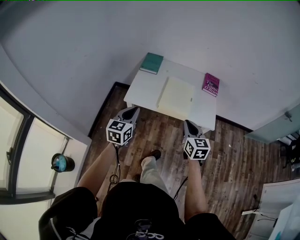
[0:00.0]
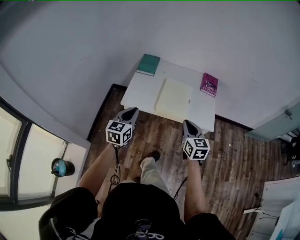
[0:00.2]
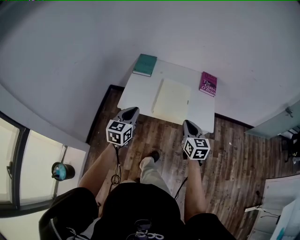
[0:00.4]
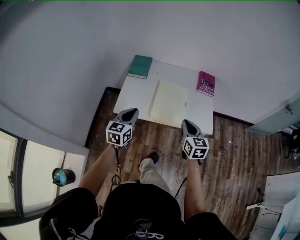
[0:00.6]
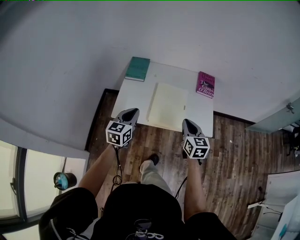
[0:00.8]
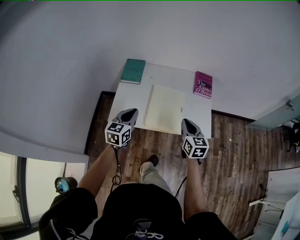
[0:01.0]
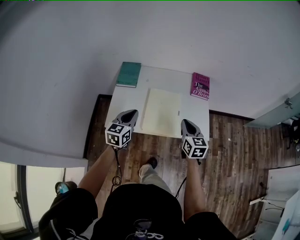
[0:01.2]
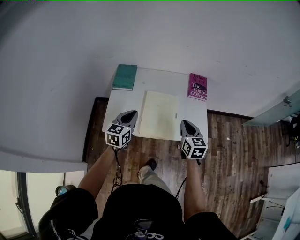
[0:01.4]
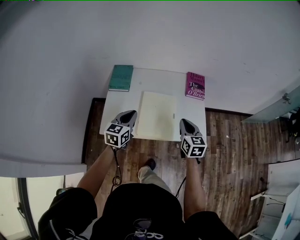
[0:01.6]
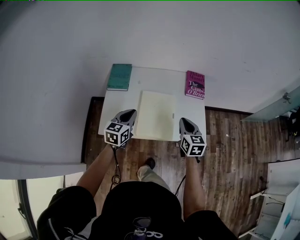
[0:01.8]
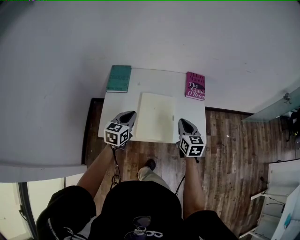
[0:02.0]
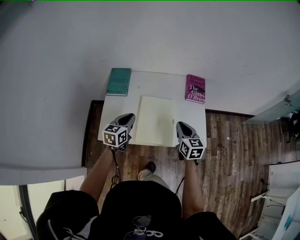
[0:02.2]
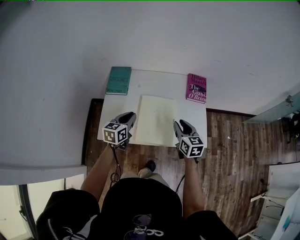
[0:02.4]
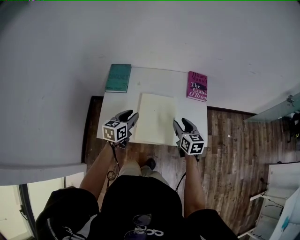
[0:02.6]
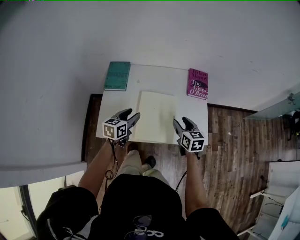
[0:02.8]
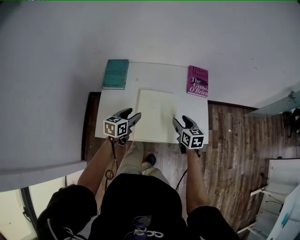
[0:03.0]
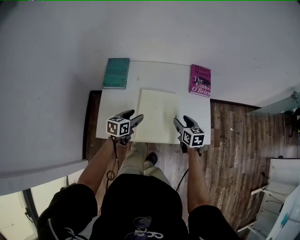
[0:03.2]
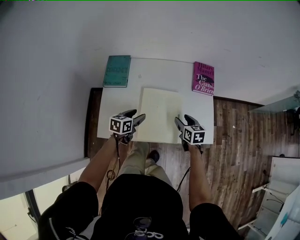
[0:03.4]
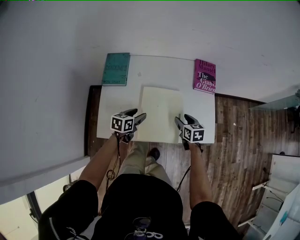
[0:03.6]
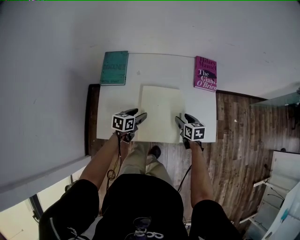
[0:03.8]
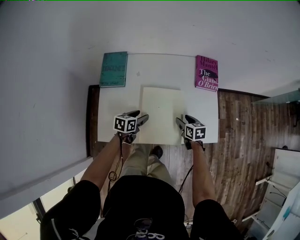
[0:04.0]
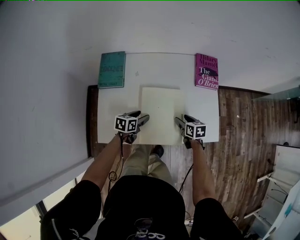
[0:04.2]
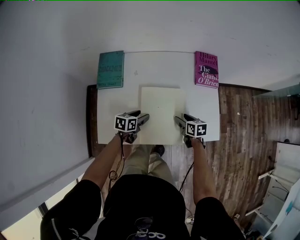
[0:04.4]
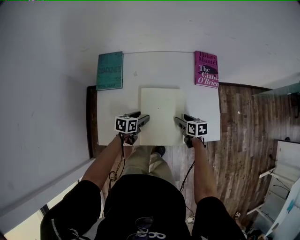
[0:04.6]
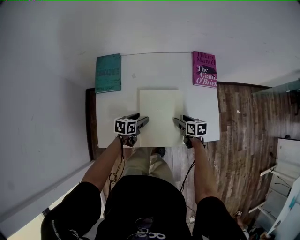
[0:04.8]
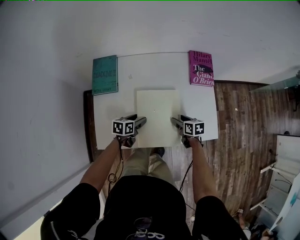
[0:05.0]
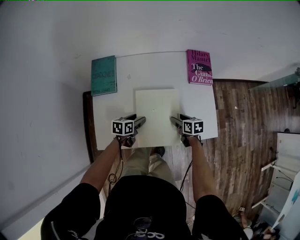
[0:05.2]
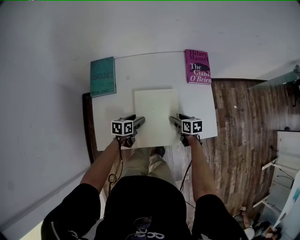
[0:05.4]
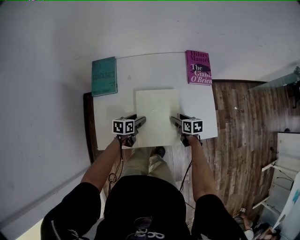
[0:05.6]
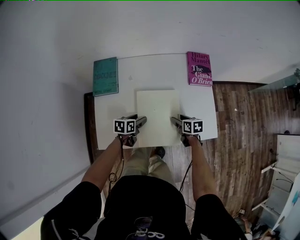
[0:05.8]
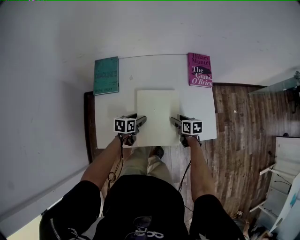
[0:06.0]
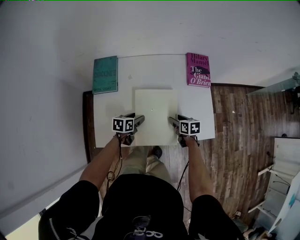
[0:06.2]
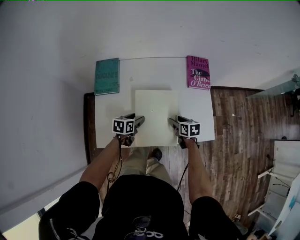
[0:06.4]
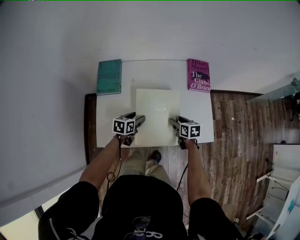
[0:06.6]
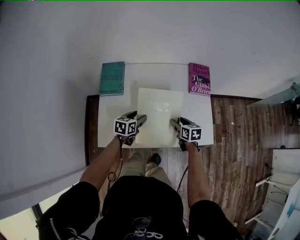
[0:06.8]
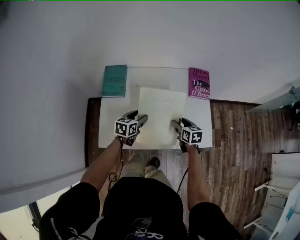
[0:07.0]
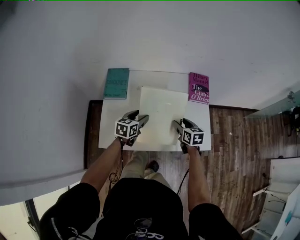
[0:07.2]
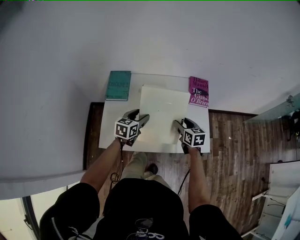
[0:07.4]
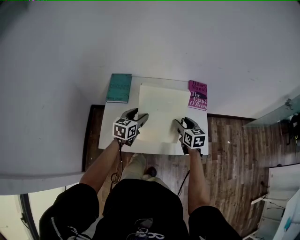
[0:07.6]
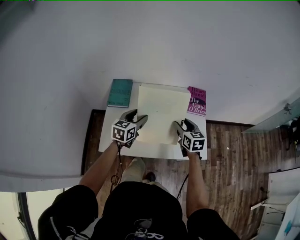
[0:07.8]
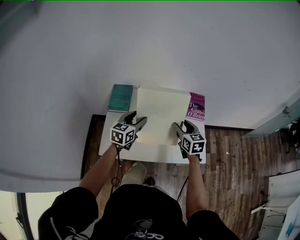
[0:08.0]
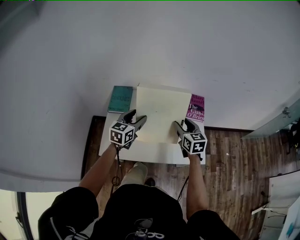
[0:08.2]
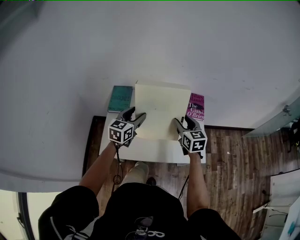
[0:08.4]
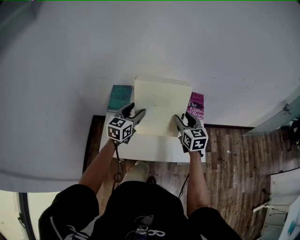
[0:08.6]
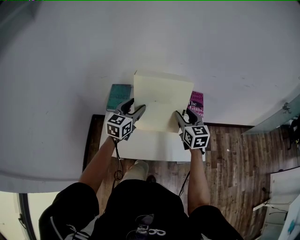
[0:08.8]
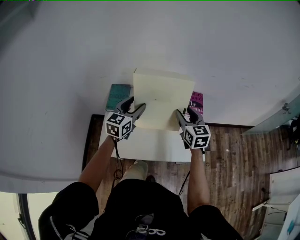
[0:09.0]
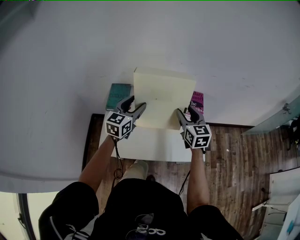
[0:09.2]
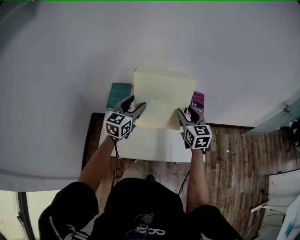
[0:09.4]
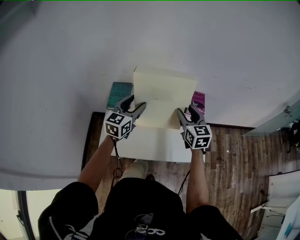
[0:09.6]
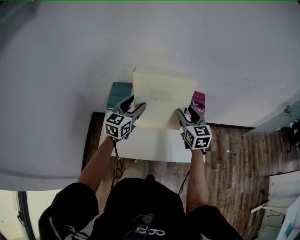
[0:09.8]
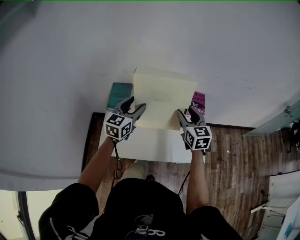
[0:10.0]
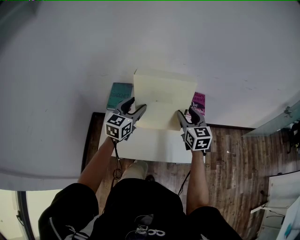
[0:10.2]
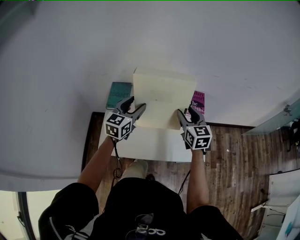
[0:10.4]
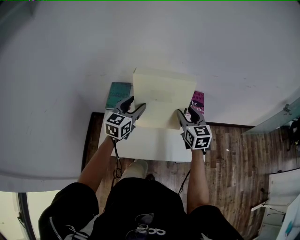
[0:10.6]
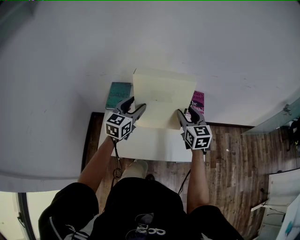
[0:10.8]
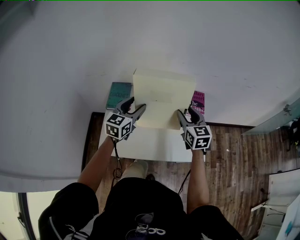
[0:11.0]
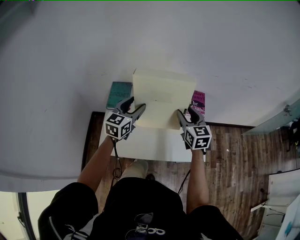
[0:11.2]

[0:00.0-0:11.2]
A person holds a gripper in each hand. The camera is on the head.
0:00.0 to 0:01.6: Both grippers move forward, about 25 cm.
0:01.6 to 0:03.2: The grippers both shift downward and forward by about 15 cm. The right gripper opens up; the left gripper turns by approximately 20 degrees, and opens its fingers.
0:03.2 to 0:04.8: Both grippers travel together downward, approximately 15 cm. The right gripper changes its angle by some 20 degrees.
0:04.8 to 0:06.4: The grippers move only a little.
0:06.4 to 0:08.0: The two grippers go approximately 25 cm upward. The left gripper changes its angle by about 40 degrees, while the right gripper rotates about 30 degrees.
0:08.0 to 0:09.6: Both grippers travel together upward, roughly 10 cm.
0:09.6 to 0:11.2: Both grippers stay about where they are.

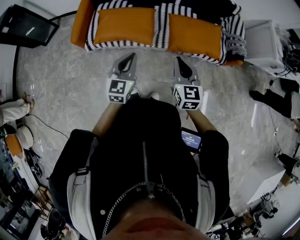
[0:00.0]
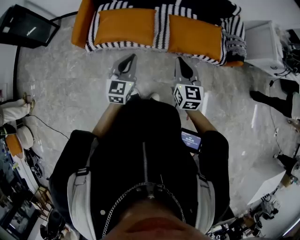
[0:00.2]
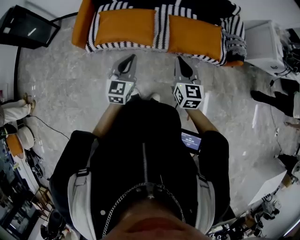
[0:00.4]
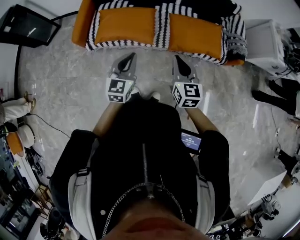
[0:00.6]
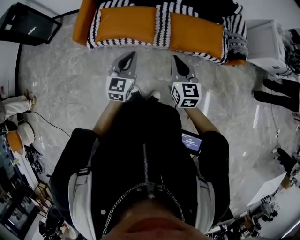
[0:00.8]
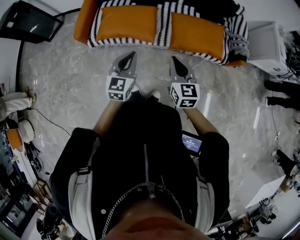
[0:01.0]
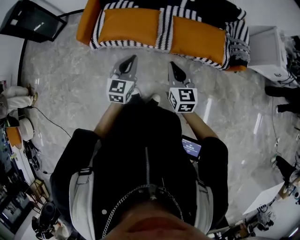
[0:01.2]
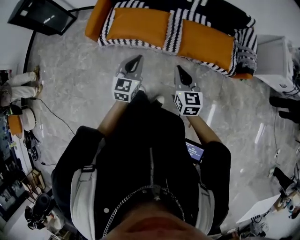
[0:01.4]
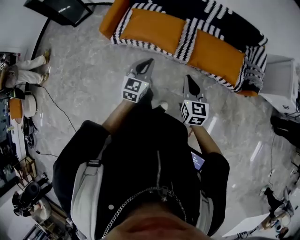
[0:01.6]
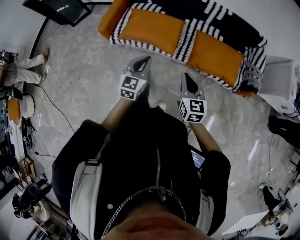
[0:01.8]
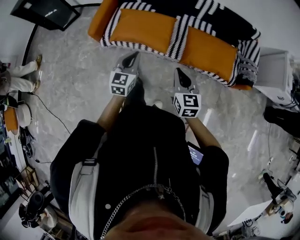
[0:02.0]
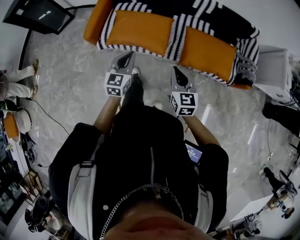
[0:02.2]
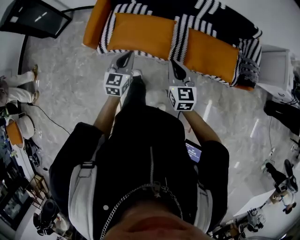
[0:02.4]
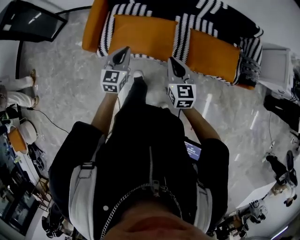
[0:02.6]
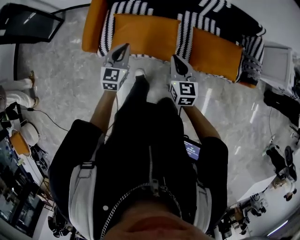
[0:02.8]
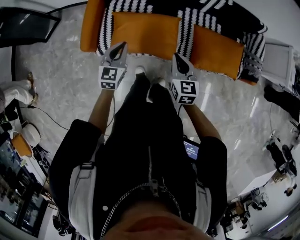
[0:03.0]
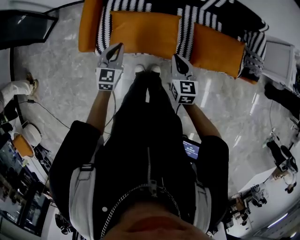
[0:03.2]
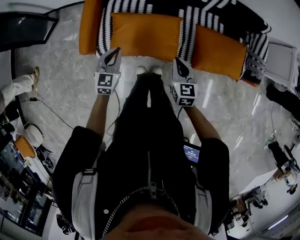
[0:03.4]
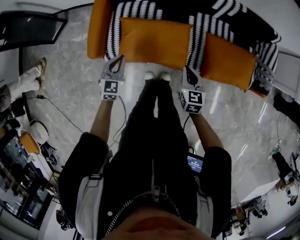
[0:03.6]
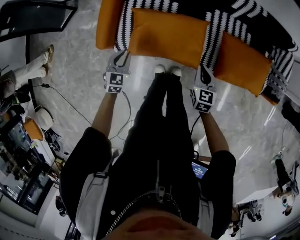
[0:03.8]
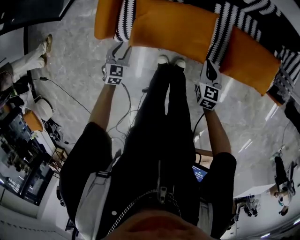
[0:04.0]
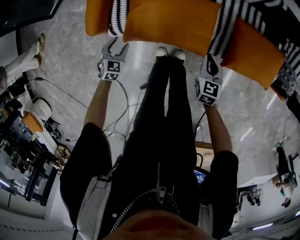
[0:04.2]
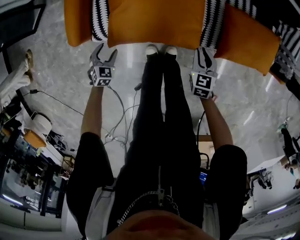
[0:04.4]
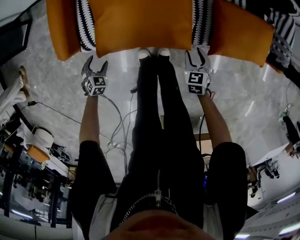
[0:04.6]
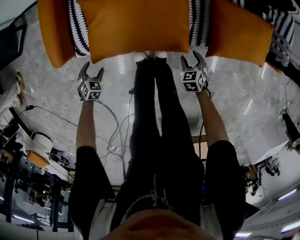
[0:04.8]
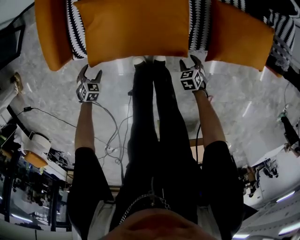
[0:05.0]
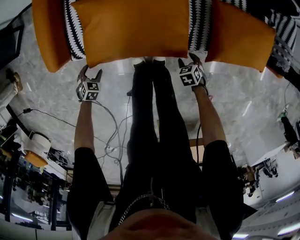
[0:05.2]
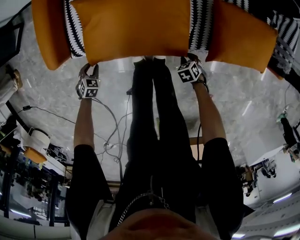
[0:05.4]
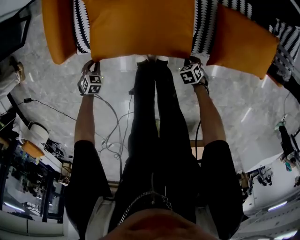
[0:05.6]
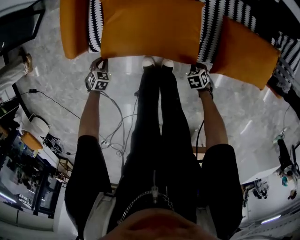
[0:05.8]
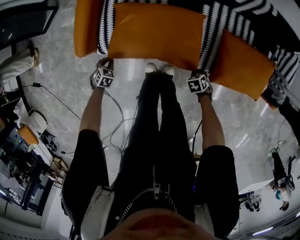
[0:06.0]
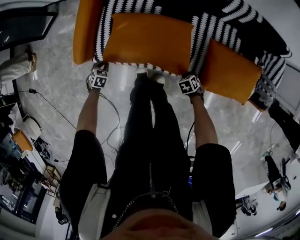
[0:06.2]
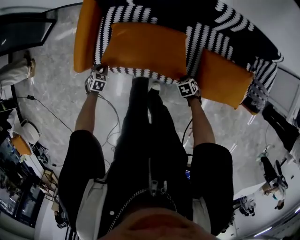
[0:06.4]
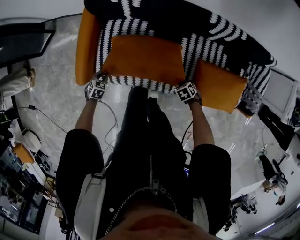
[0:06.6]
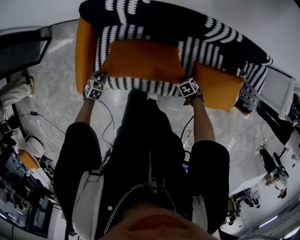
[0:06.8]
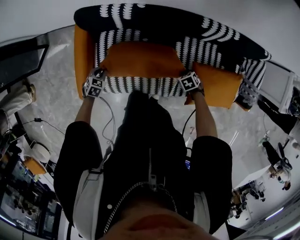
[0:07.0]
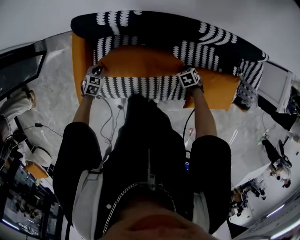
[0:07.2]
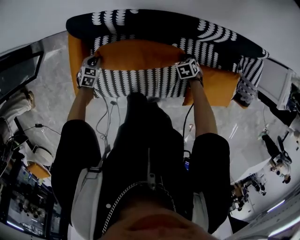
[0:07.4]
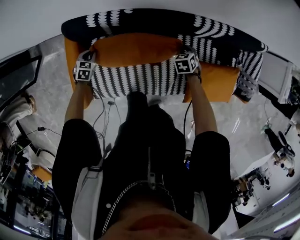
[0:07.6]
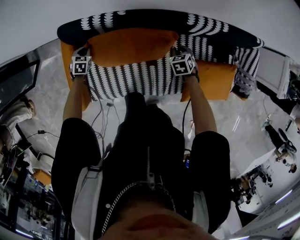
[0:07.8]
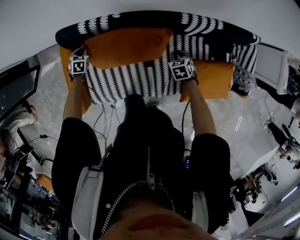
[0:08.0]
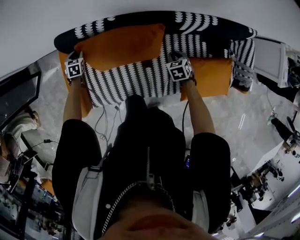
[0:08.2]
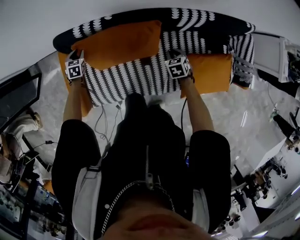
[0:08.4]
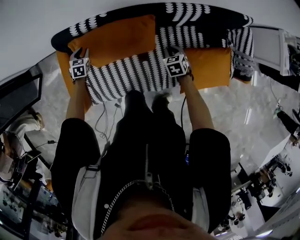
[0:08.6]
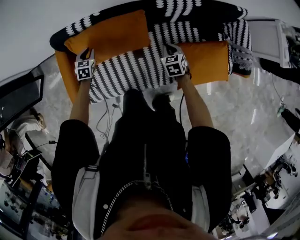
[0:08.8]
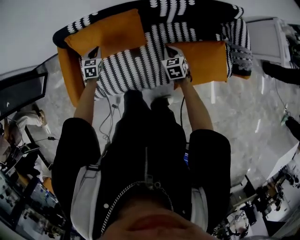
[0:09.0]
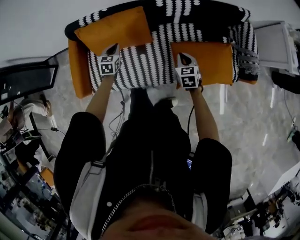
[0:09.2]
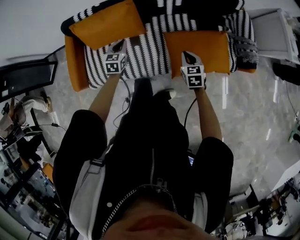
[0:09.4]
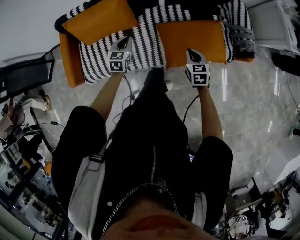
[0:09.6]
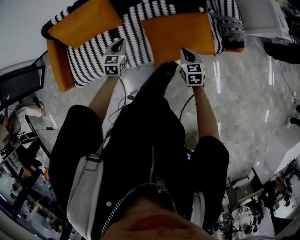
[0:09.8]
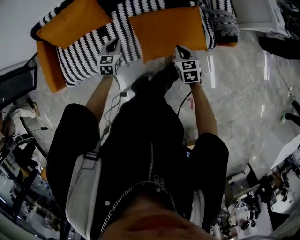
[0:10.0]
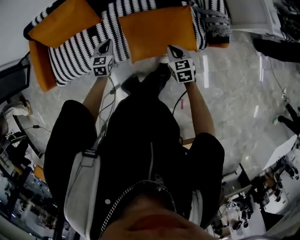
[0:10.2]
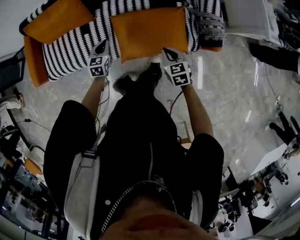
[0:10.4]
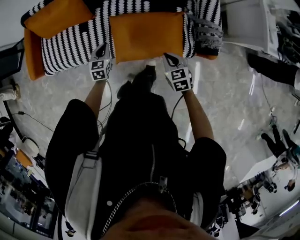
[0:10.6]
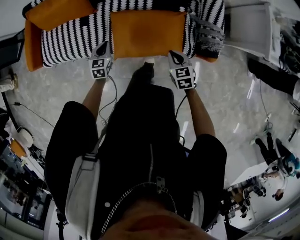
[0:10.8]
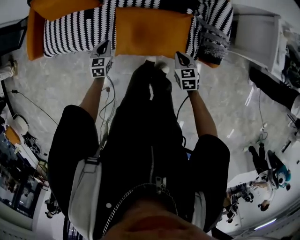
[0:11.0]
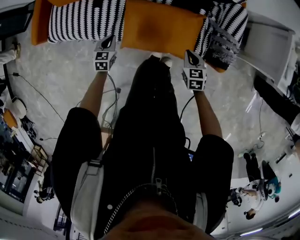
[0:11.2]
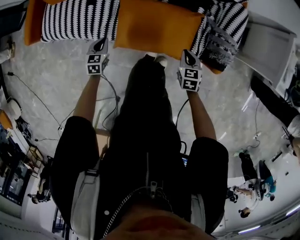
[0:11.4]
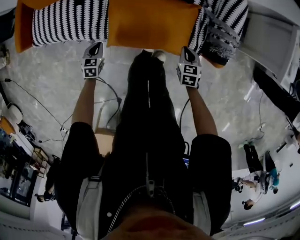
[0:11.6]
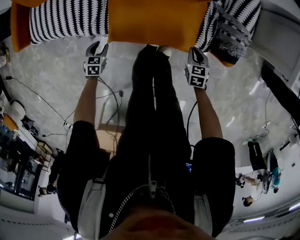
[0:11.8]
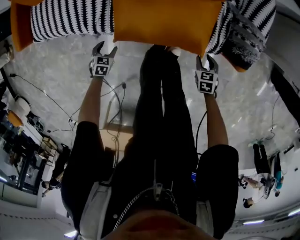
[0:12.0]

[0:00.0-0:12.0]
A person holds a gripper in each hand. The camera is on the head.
0:00.0 to 0:01.6: The right gripper changes place by roughly 5 cm.
0:01.6 to 0:03.0: Both grippers travel together forward and to the left, some 35 cm.
0:03.0 to 0:04.4: The right gripper moves downward, about 30 cm, and changes its angle by roughly 20 degrees. The left gripper is displaced downward and to the left by some 40 cm, points its fingers approximately 30 degrees further downward, and opens.
0:04.4 to 0:06.0: The right gripper travels downward by roughly 15 cm, tips its fingers downward by roughly 40 degrees, and opens, then closes again. Meanwhile the left gripper moves roughly 15 cm downward and comes back, and closes up.
0:06.0 to 0:07.6: The pair of grippers is taken roughly 50 cm. The right gripper turns by about 20 degrees.
0:07.6 to 0:09.0: The left gripper moves to the right, upward and backward, about 30 cm, while the right gripper is displaced backward, to the right and upward by about 25 cm, and rotates approximately 20 degrees.
0:09.0 to 0:10.4: The two grippers travel together, to the right and backward, about 50 cm.
0:10.4 to 0:12.0: The right gripper moves downward and to the right, about 35 cm, turns by about 20 degrees, and opens. Meanwhile the left gripper is displaced downward and backward by roughly 30 cm, tilts its fingers some 30 degrees downward, and opens up.
